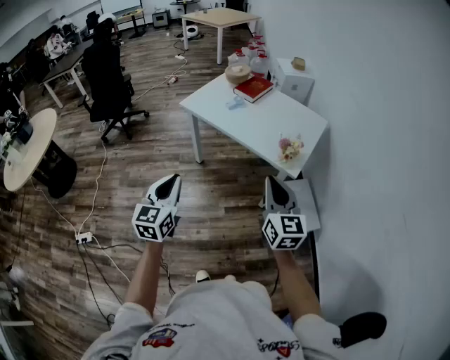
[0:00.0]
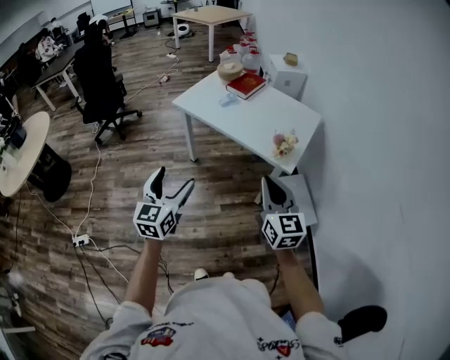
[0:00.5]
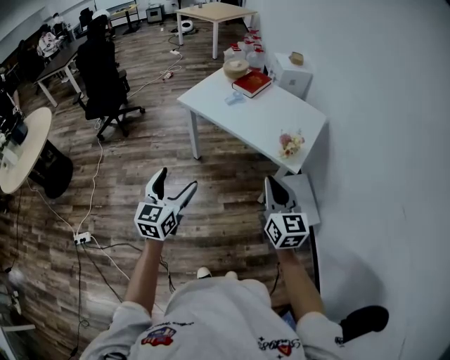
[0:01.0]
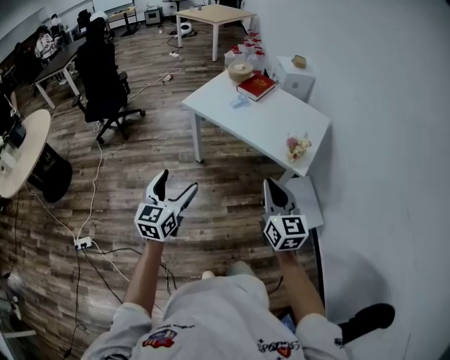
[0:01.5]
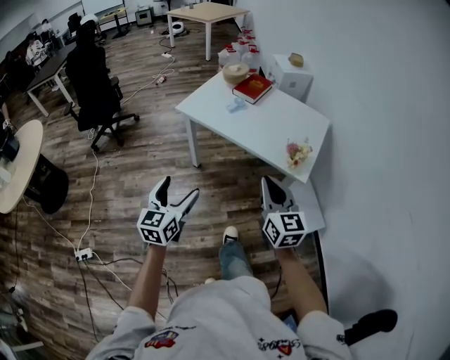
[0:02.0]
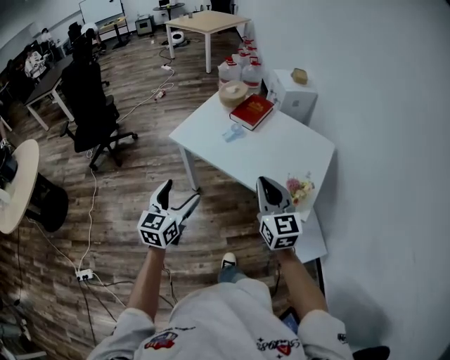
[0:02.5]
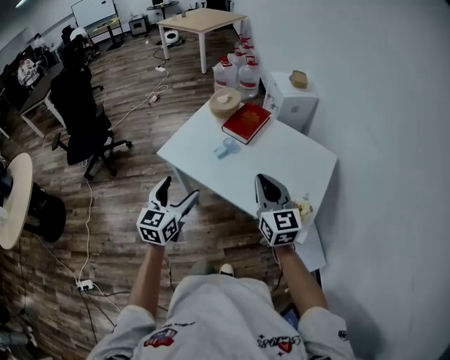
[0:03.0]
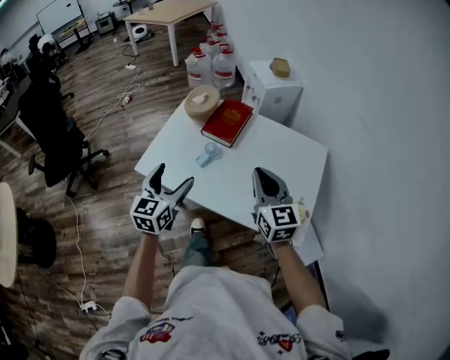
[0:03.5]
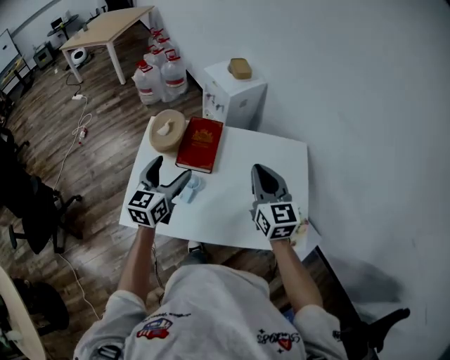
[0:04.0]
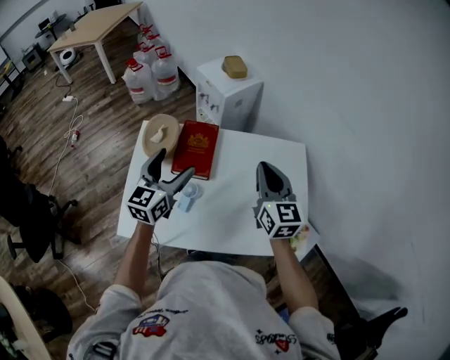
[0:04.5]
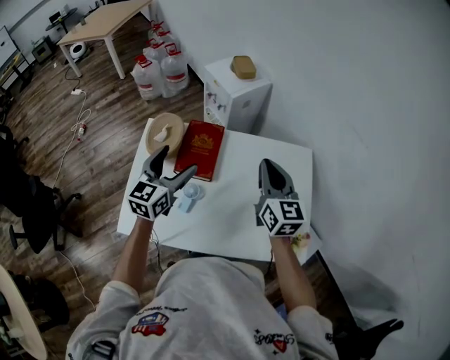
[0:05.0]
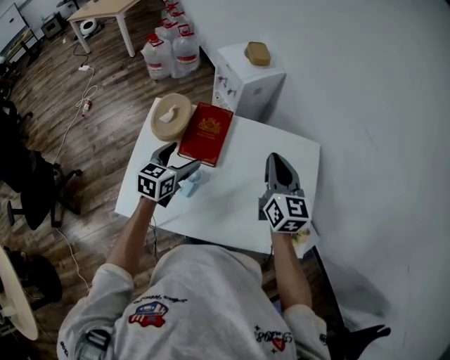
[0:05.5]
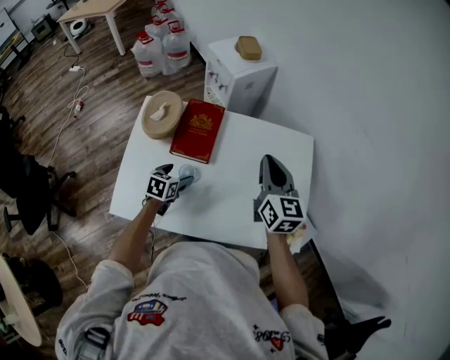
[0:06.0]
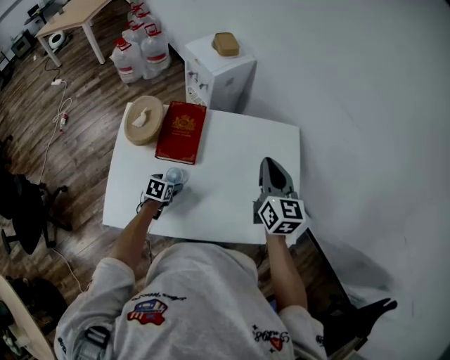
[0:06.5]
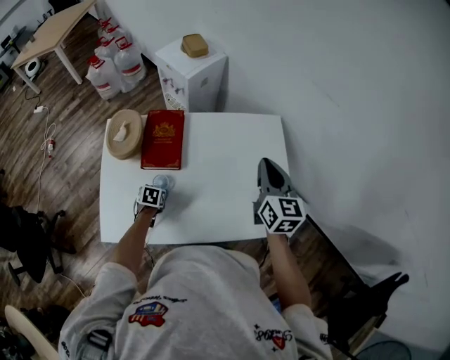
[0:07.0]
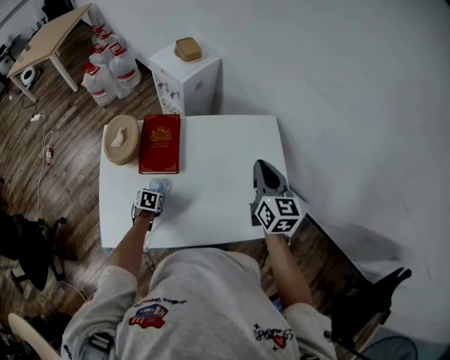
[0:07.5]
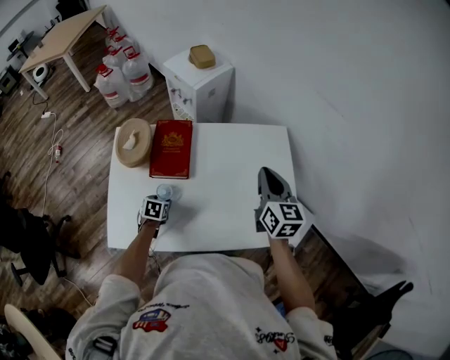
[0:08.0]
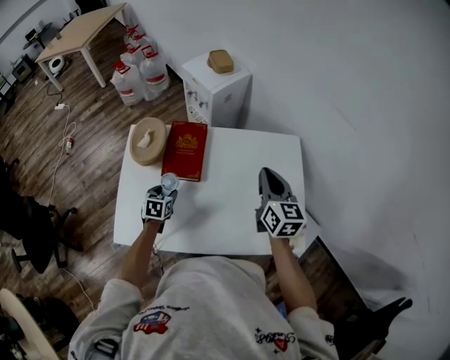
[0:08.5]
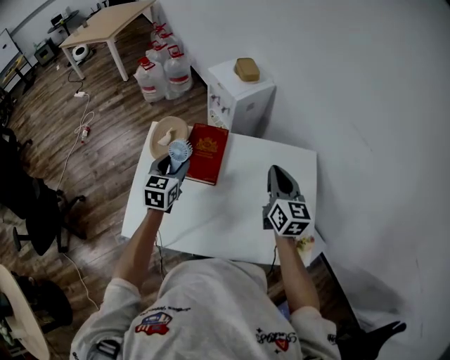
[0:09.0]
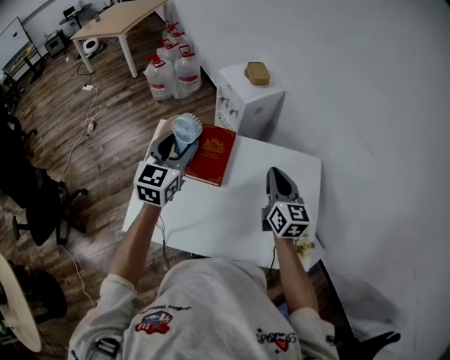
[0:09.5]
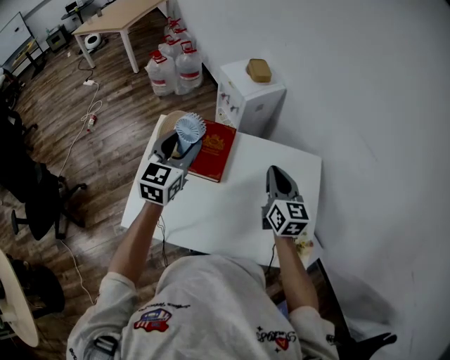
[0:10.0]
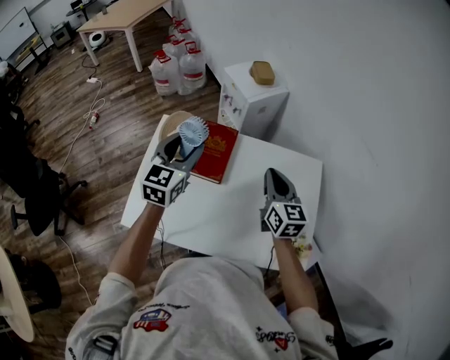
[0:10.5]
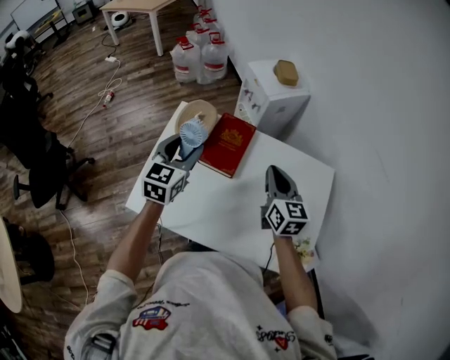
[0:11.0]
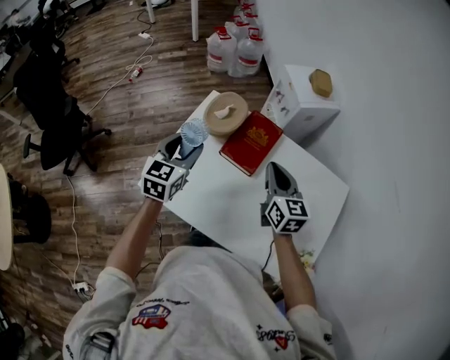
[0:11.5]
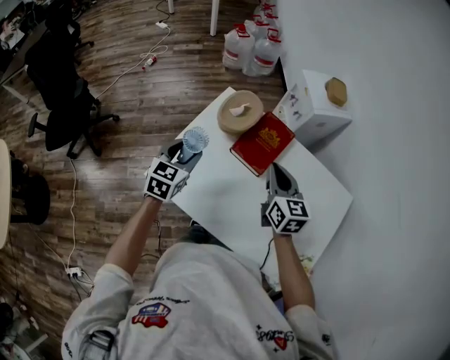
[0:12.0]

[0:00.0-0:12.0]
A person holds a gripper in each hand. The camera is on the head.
0:00.0 to 0:02.0: The right gripper moves to the left and forward, some 15 cm; the left gripper goes roughly 15 cm forward, to the left and downward, and opens.
0:02.0 to 0:04.0: The pair of grippers is taken some 70 cm. The left gripper swivels about 30 degrees. Meanwhile the right gripper swivels some 20 degrees.
0:04.0 to 0:06.0: The right gripper travels forward by approximately 10 cm. The left gripper heads downward, covering approximately 25 cm, and tips its fingers downward by some 40 degrees.
0:06.0 to 0:08.0: The right gripper shifts some 10 cm to the right; the left gripper moves downward, some 10 cm, and closes up.
0:08.0 to 0:10.0: The left gripper shifts some 40 cm upward, and tilts its fingers some 50 degrees upward. Meanwhile the right gripper goes roughly 10 cm to the left.
0:10.0 to 0:12.0: The right gripper heads to the left, covering some 20 cm, and changes its angle by about 20 degrees; the left gripper moves to the left, downward and backward, approximately 25 cm, and changes its angle by approximately 30 degrees.

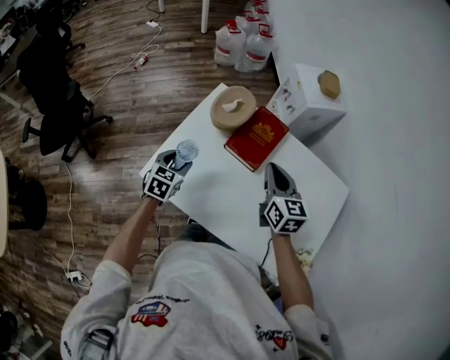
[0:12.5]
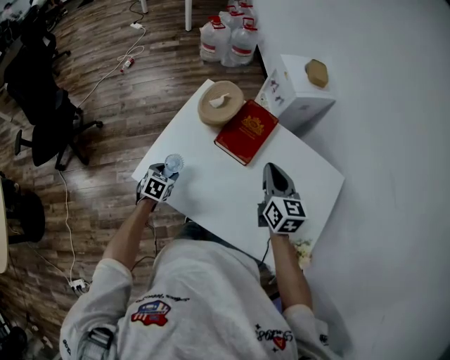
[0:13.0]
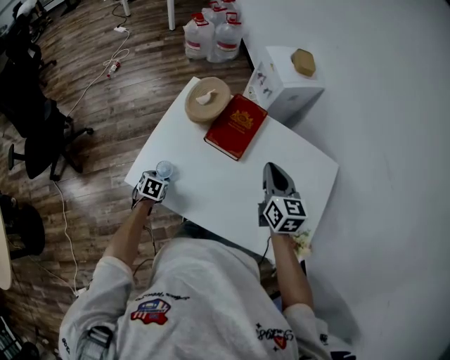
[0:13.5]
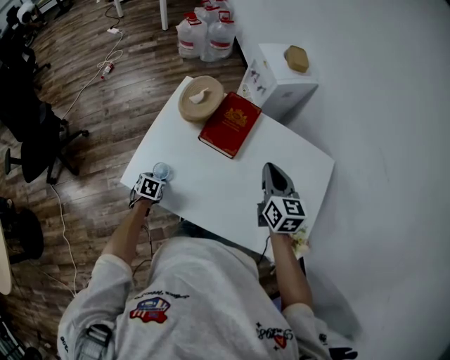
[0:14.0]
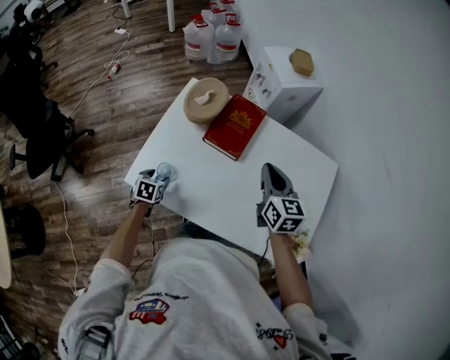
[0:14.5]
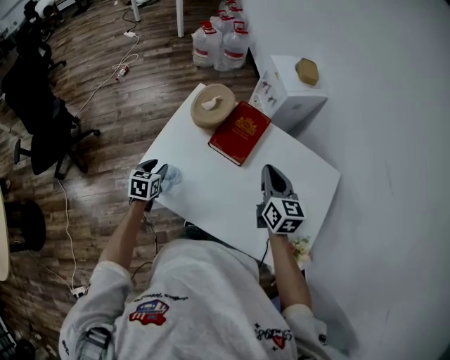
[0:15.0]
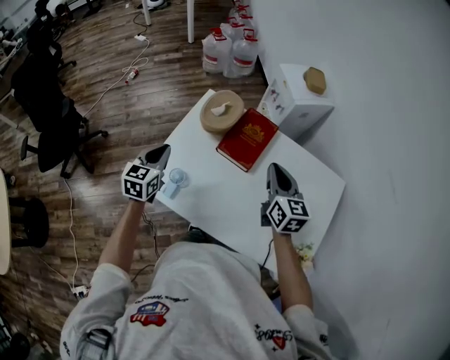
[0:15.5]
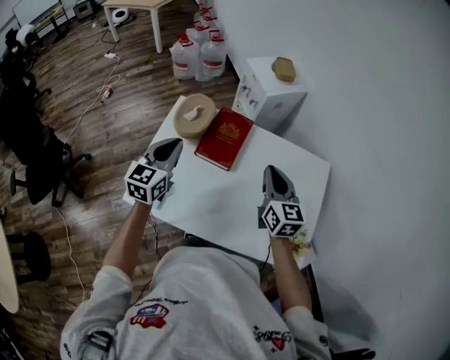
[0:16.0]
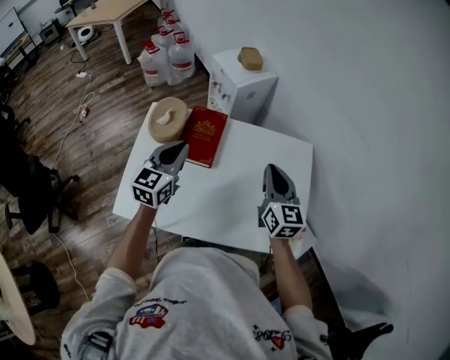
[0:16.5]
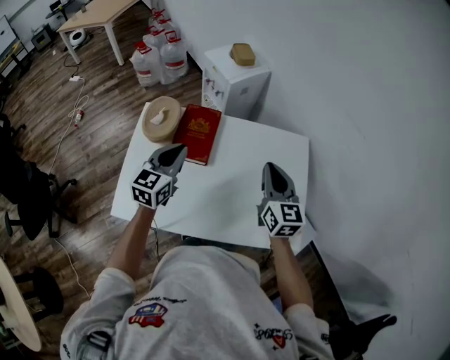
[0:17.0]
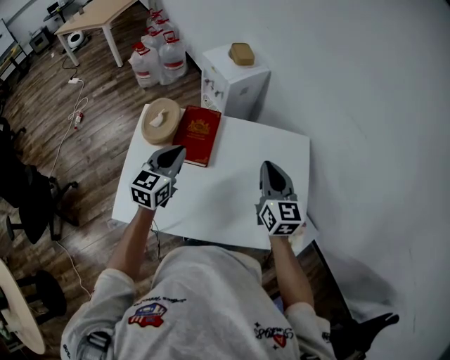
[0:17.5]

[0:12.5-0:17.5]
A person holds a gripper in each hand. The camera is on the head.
0:12.5 to 0:15.0: The right gripper moves to the right, roughly 5 cm. The left gripper moves about 15 cm downward and comes back.
0:15.0 to 0:17.5: The right gripper is displaced to the right and upward by roughly 15 cm, and turns by approximately 20 degrees; the left gripper shifts some 35 cm to the right, upward and forward, tips its fingers upward by about 30 degrees, and closes up.

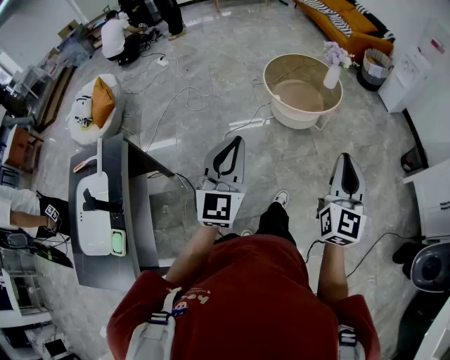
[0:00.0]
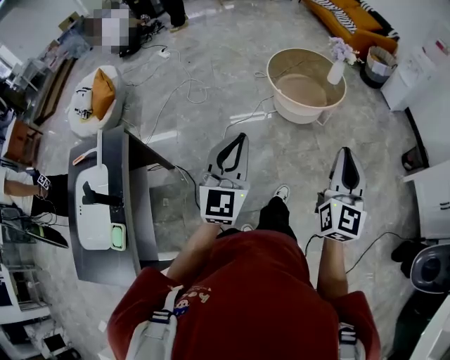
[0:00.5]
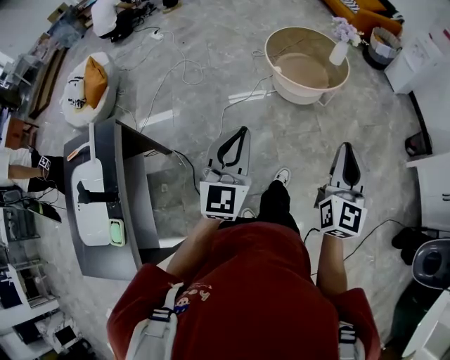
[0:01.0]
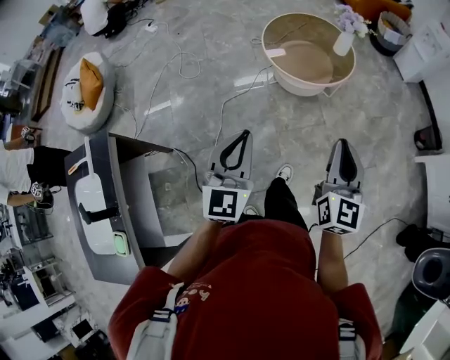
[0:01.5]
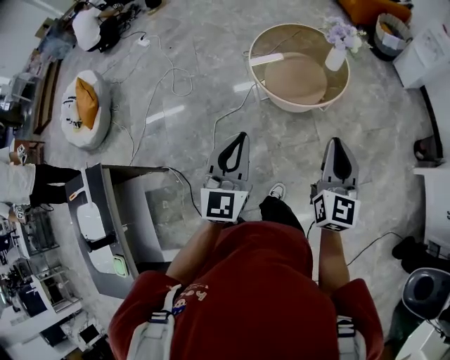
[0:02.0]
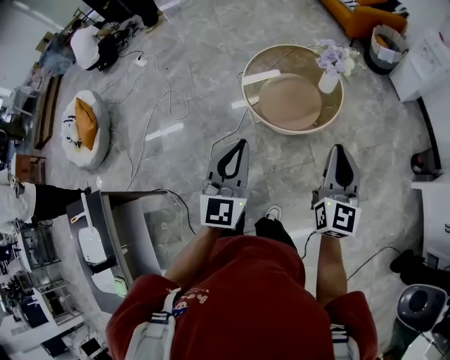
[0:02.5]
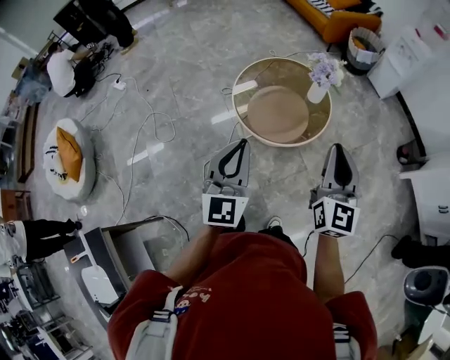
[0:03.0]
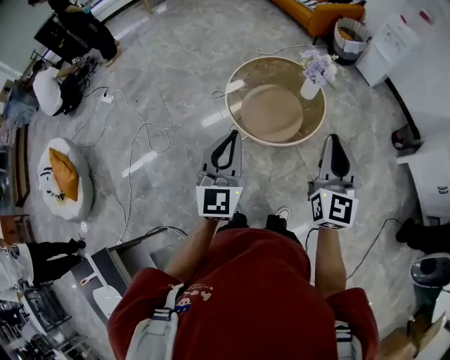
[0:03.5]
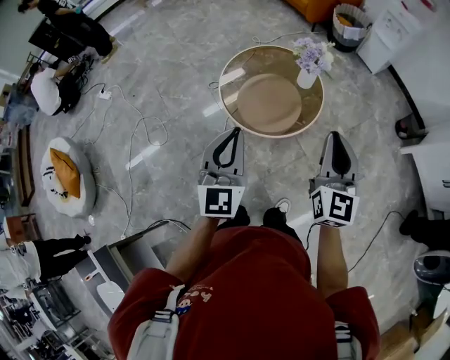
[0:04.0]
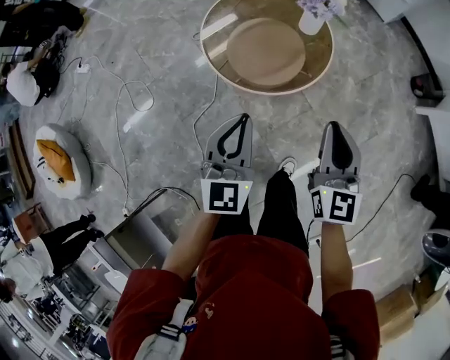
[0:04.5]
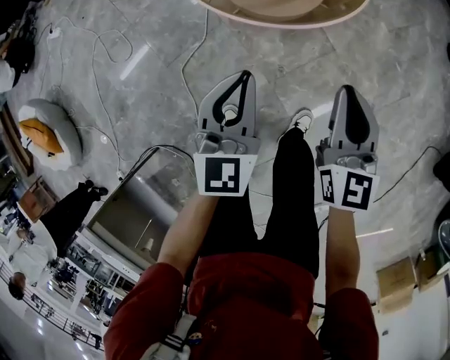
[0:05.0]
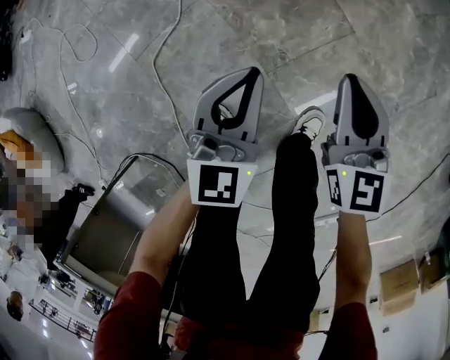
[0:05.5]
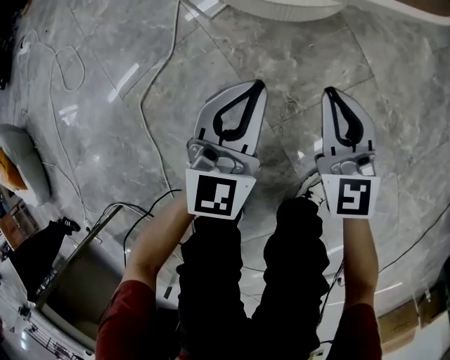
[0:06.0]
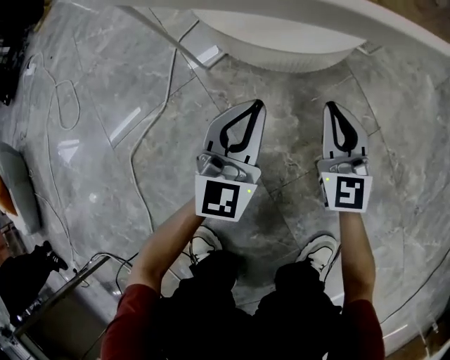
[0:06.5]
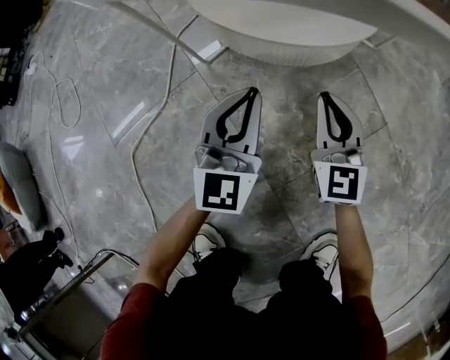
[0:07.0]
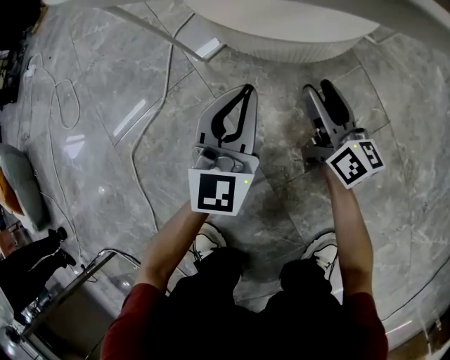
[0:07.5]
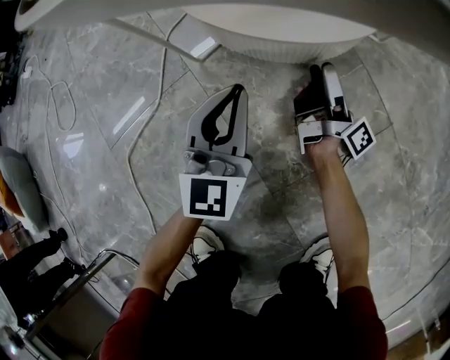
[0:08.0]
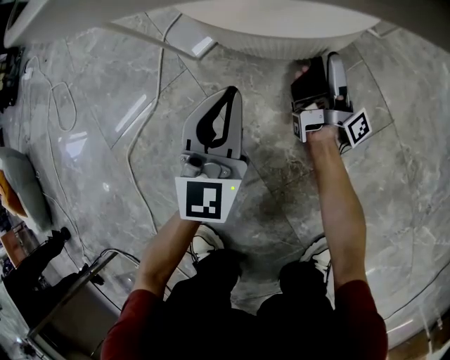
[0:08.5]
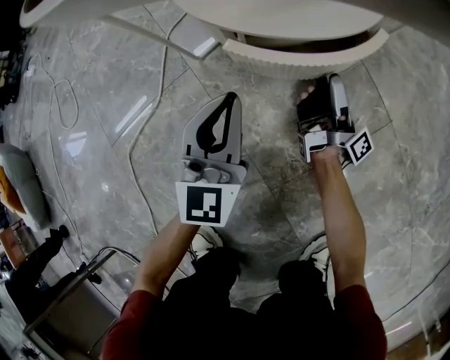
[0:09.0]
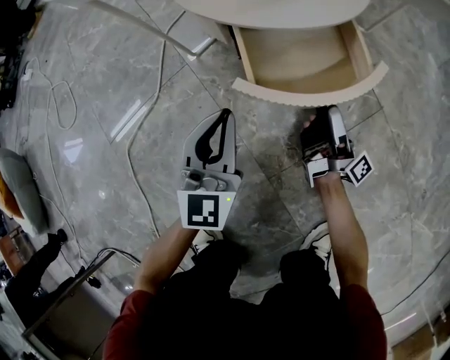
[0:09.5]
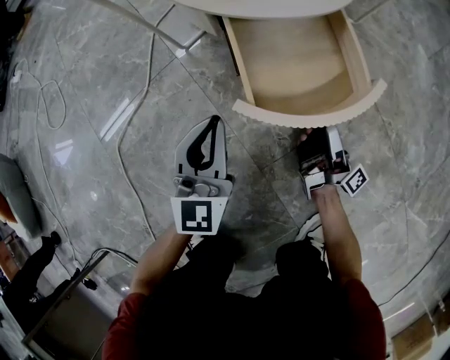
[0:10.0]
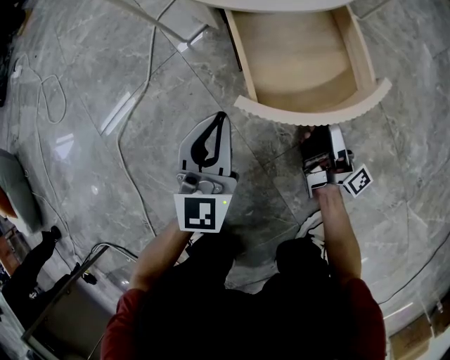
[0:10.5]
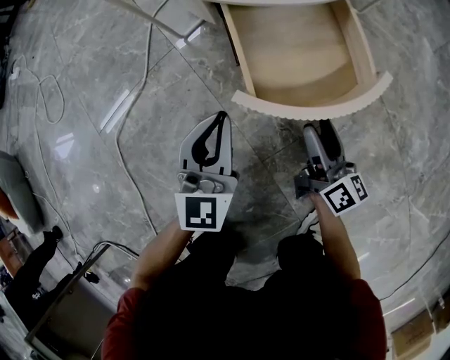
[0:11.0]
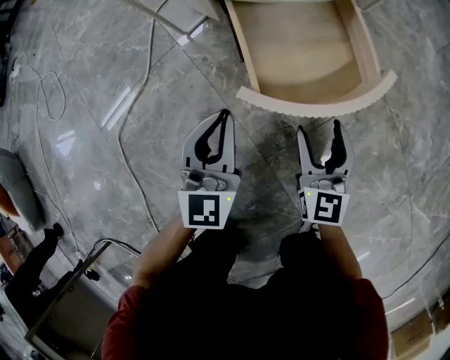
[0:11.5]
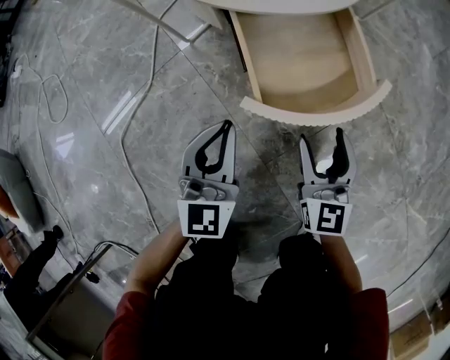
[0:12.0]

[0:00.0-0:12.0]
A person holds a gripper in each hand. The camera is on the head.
0:00.0 to 0:02.0: Both grippers move forward, roughly 30 cm.
0:02.0 to 0:04.0: The two grippers go some 20 cm forward.
0:04.0 to 0:06.0: The two grippers go roughly 70 cm downward. The right gripper swivels approximately 20 degrees.
0:06.0 to 0:08.0: The right gripper goes approximately 30 cm downward and forward, rolls clockwise, seen from behind, by about 90 degrees, and opens its fingers, while the left gripper goes about 15 cm downward and forward.
0:08.0 to 0:10.0: The right gripper travels backward by roughly 15 cm. Meanwhile the left gripper moves backward, roughly 10 cm.
0:10.0 to 0:12.0: The right gripper moves upward, about 5 cm, and rolls counterclockwise, seen from behind, by roughly 90 degrees.
